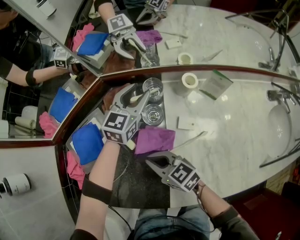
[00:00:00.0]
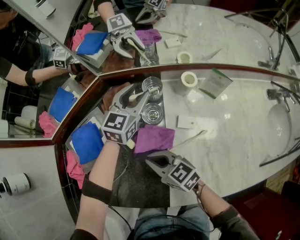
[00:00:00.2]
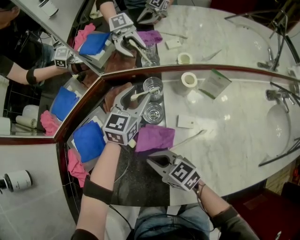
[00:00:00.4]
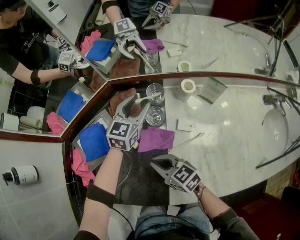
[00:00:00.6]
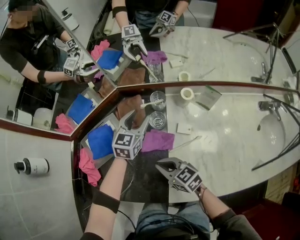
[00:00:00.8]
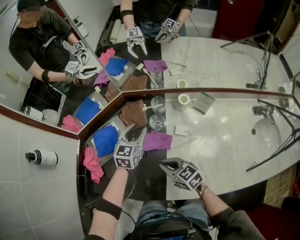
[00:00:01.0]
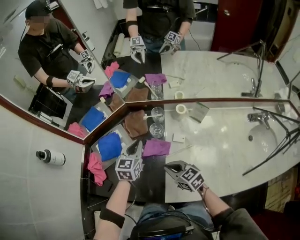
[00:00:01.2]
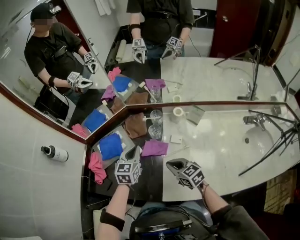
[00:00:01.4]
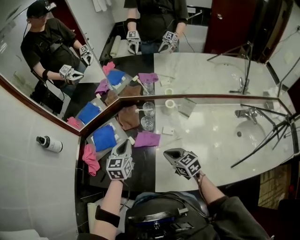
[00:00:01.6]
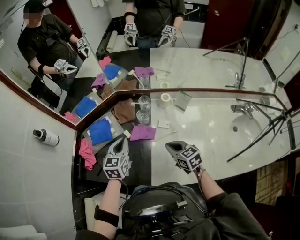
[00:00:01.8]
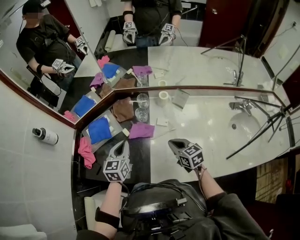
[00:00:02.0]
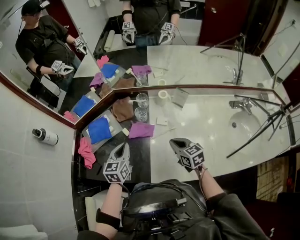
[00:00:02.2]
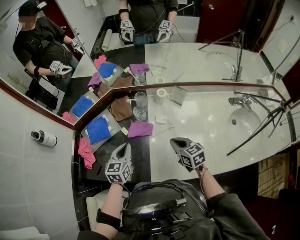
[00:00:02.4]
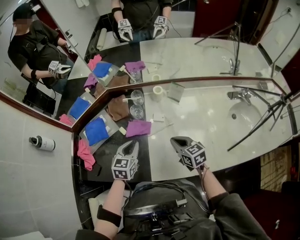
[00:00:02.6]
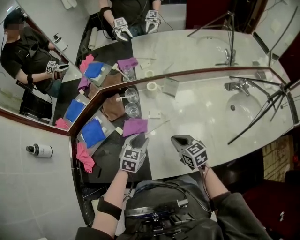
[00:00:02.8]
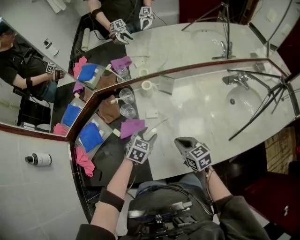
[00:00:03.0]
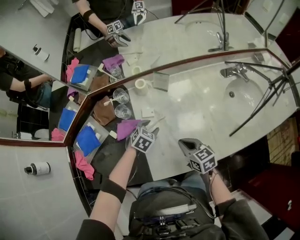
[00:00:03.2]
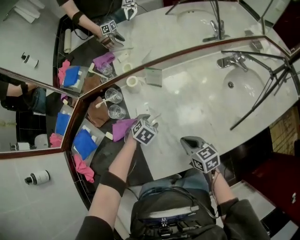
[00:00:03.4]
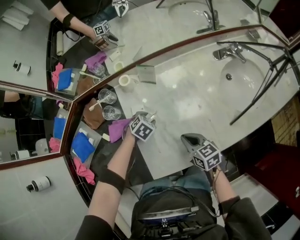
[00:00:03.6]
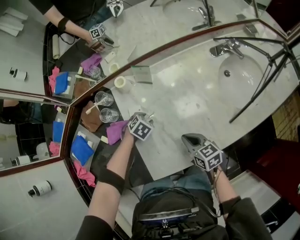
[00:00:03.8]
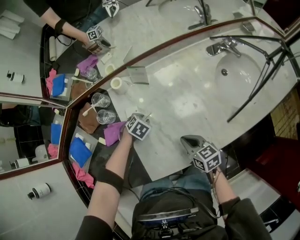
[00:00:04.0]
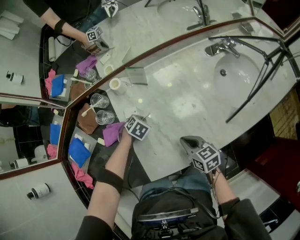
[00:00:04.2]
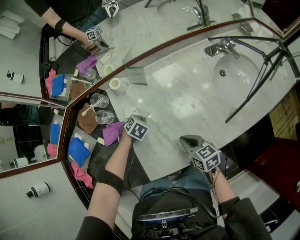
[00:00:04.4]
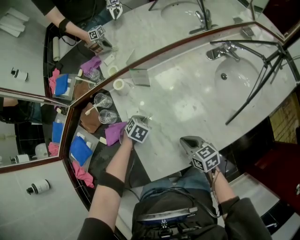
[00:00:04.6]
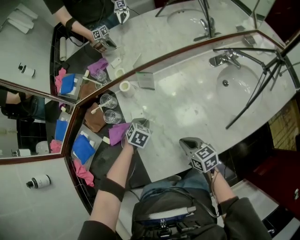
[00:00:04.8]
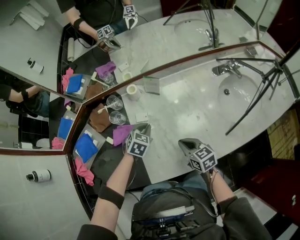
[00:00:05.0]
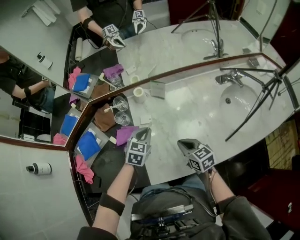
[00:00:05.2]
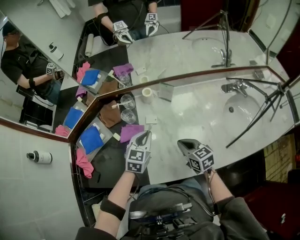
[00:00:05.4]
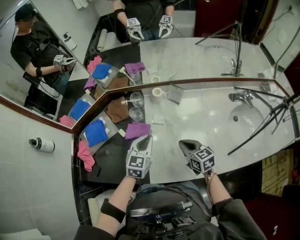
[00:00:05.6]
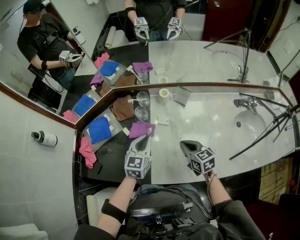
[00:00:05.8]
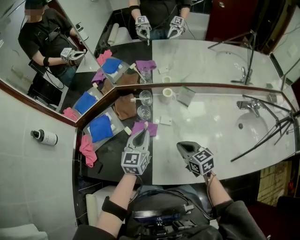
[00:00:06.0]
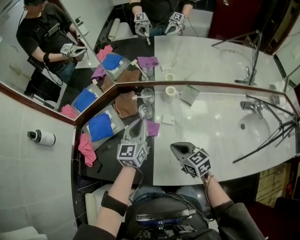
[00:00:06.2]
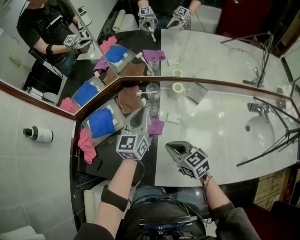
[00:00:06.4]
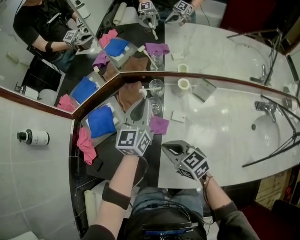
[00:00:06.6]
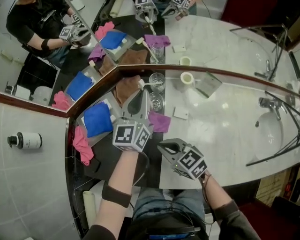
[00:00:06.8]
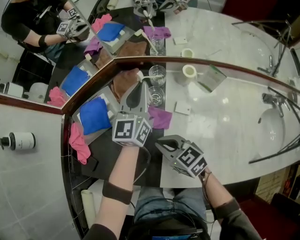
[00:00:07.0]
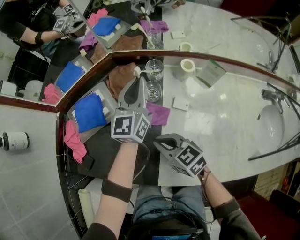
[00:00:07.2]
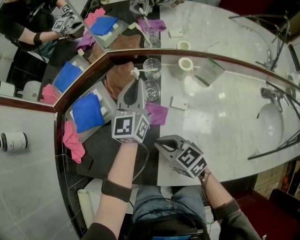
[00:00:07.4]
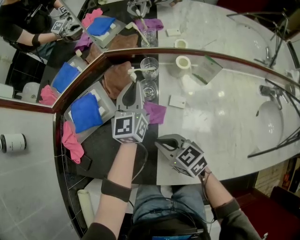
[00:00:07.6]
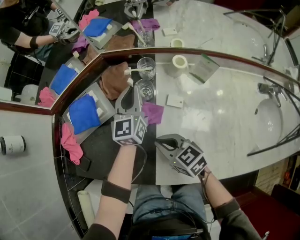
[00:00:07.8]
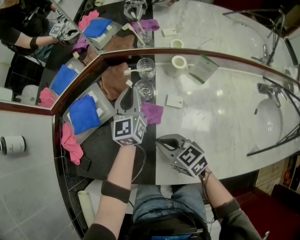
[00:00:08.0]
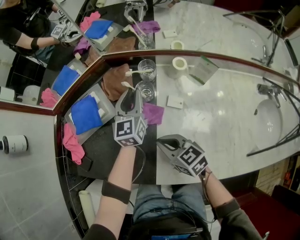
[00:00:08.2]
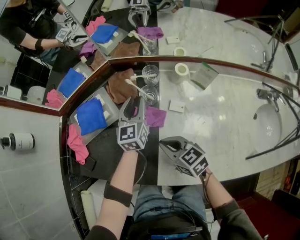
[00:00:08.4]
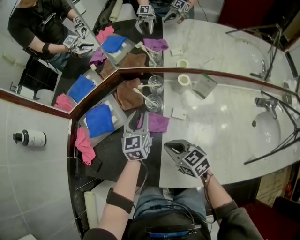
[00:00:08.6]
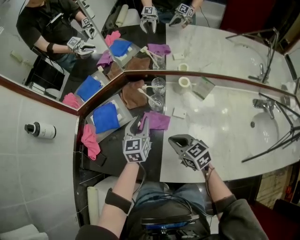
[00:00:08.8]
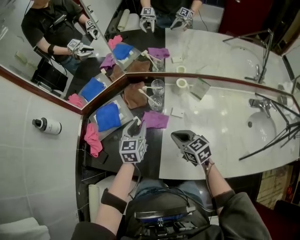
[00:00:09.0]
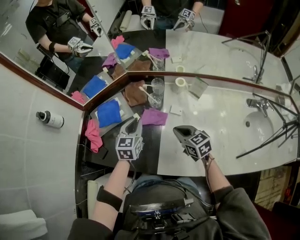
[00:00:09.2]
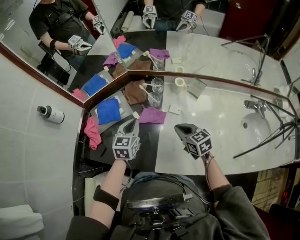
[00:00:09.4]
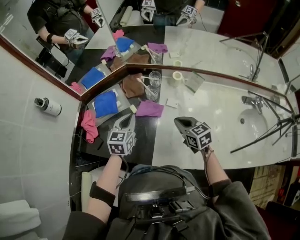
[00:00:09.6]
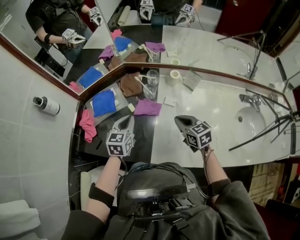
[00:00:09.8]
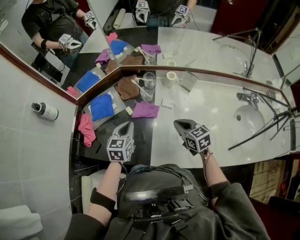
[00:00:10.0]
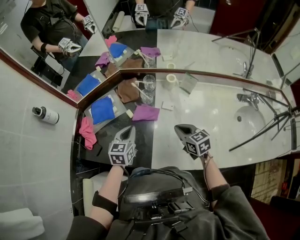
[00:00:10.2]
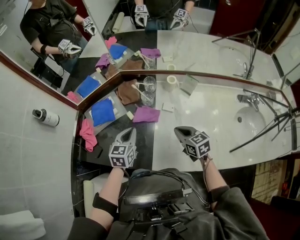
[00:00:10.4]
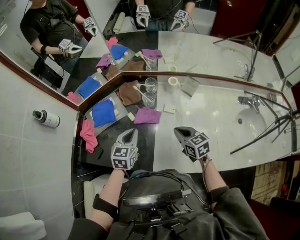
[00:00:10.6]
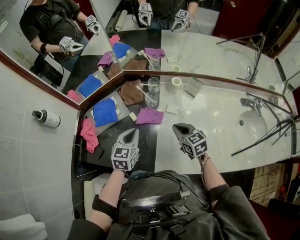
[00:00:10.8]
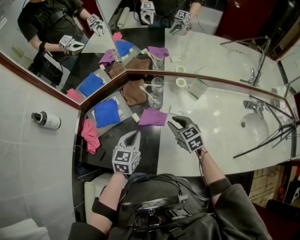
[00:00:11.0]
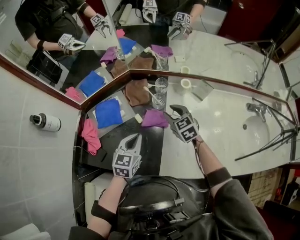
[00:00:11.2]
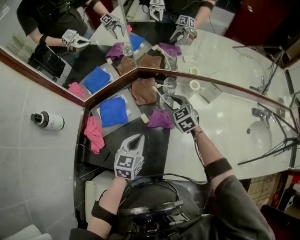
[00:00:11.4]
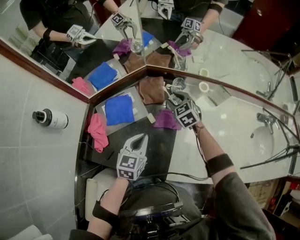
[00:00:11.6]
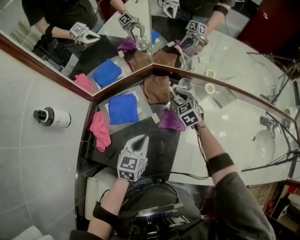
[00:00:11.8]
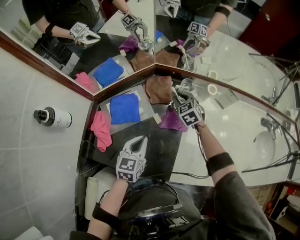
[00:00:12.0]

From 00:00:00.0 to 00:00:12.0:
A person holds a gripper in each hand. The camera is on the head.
From 00:00:00.0 to 00:00:01.6: The left gripper heads backward, to the left and upward, covering roughly 25 cm, rotates approximately 20 degrees, and closes, while the right gripper shifts some 20 cm to the right, upward and backward.
From 00:00:01.6 to 00:00:03.0: The right gripper shifts by roughly 15 cm, and swivels about 20 degrees. Meanwhile the left gripper shifts by some 25 cm, rotates approximately 50 degrees, and opens its fingers.
From 00:00:03.0 to 00:00:04.4: The right gripper changes place by about 10 cm; the left gripper travels downward by roughly 15 cm, swivels approximately 30 degrees, and closes up.
From 00:00:04.4 to 00:00:06.0: The left gripper moves upward, about 25 cm, and tilts its fingers about 60 degrees upward; the right gripper moves roughly 15 cm, and turns by some 30 degrees.
From 00:00:06.0 to 00:00:07.6: The right gripper shifts approximately 20 cm to the left, downward and forward, while the left gripper is displaced forward and downward by roughly 20 cm.
From 00:00:07.6 to 00:00:09.0: The left gripper is displaced backward and to the left by some 15 cm, swivels some 20 degrees, and opens its fingers. The right gripper travels to the right and upward by some 10 cm.
From 00:00:09.0 to 00:00:10.4: The left gripper is displaced backward by about 10 cm, and closes. The right gripper is displaced to the right by about 5 cm.
From 00:00:10.4 to 00:00:12.0: The left gripper is displaced to the left by approximately 10 cm, while the right gripper is displaced forward and to the left by some 30 cm, changes its angle by approximately 30 degrees, and opens.

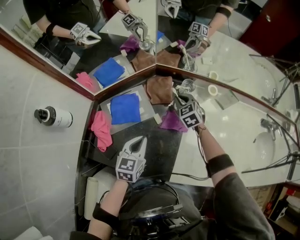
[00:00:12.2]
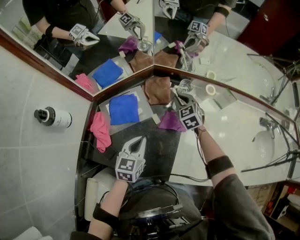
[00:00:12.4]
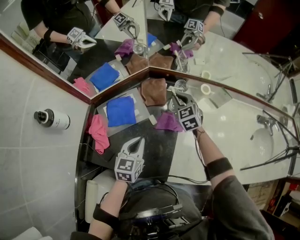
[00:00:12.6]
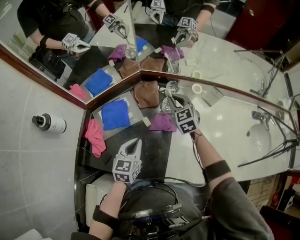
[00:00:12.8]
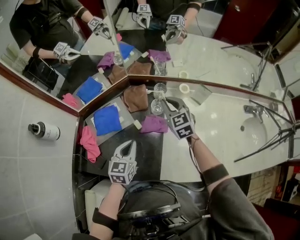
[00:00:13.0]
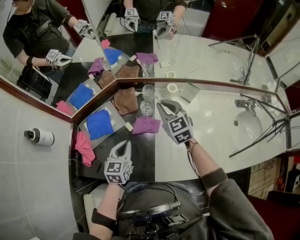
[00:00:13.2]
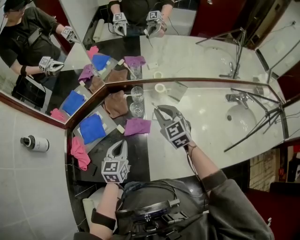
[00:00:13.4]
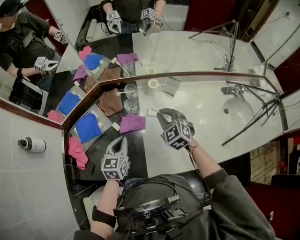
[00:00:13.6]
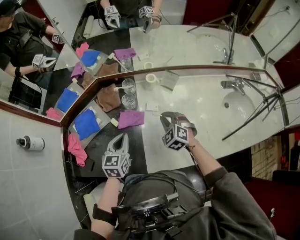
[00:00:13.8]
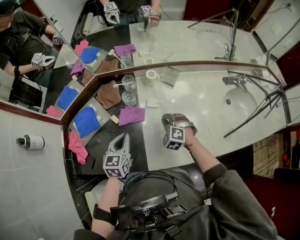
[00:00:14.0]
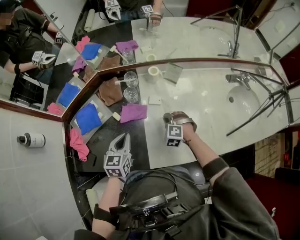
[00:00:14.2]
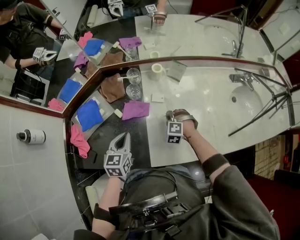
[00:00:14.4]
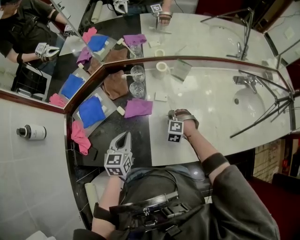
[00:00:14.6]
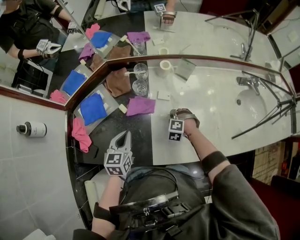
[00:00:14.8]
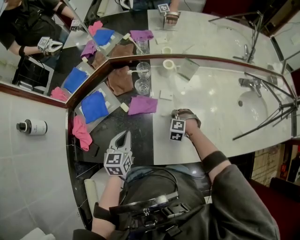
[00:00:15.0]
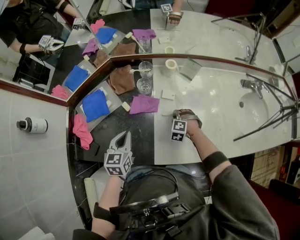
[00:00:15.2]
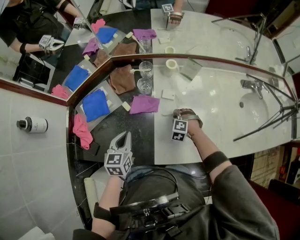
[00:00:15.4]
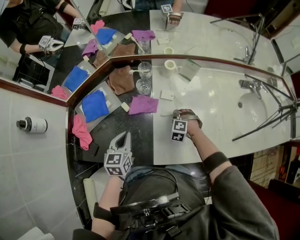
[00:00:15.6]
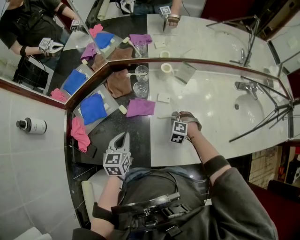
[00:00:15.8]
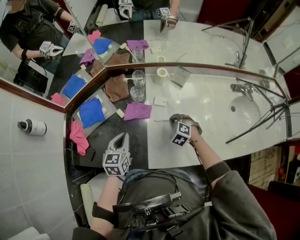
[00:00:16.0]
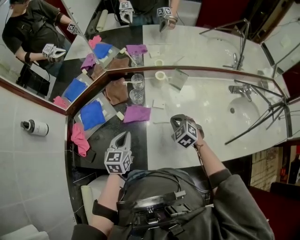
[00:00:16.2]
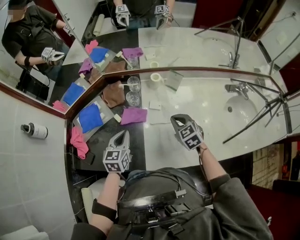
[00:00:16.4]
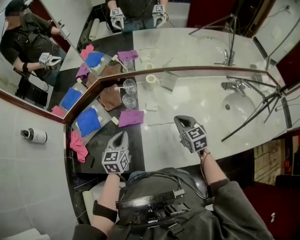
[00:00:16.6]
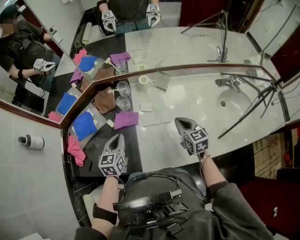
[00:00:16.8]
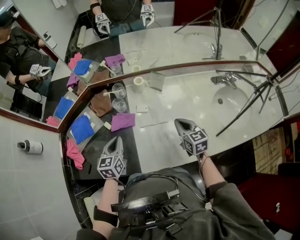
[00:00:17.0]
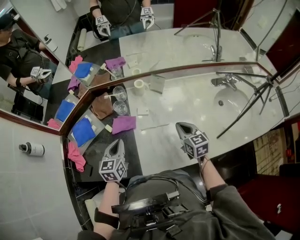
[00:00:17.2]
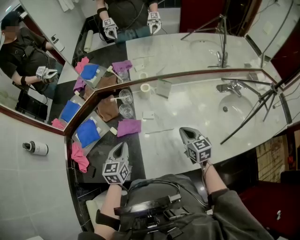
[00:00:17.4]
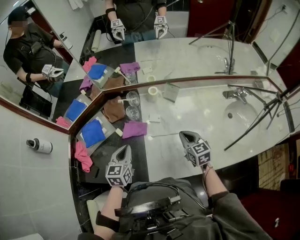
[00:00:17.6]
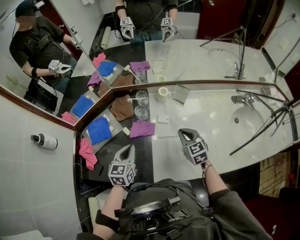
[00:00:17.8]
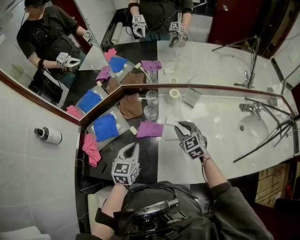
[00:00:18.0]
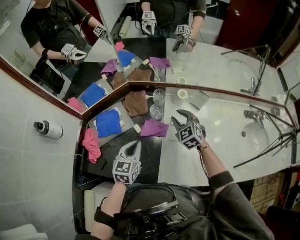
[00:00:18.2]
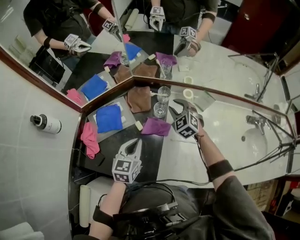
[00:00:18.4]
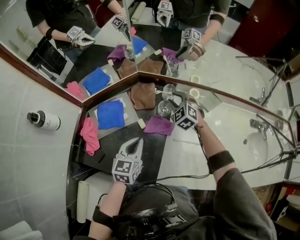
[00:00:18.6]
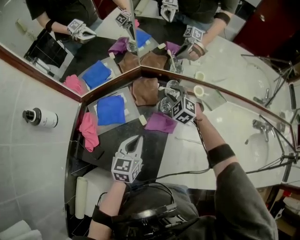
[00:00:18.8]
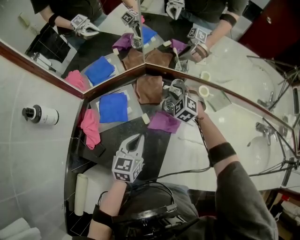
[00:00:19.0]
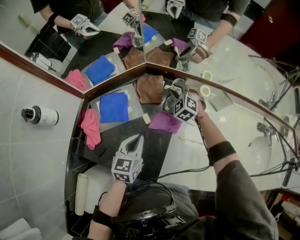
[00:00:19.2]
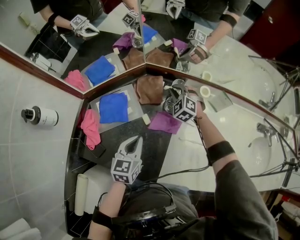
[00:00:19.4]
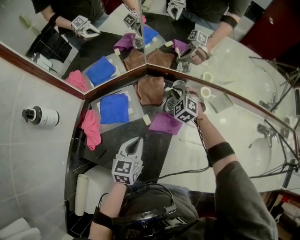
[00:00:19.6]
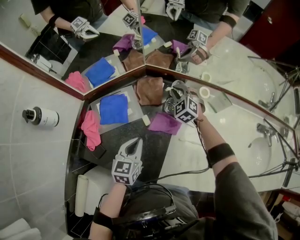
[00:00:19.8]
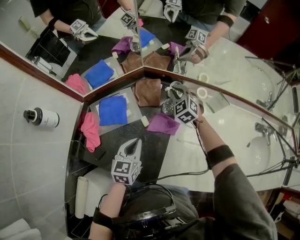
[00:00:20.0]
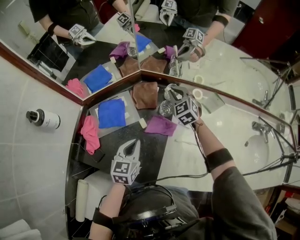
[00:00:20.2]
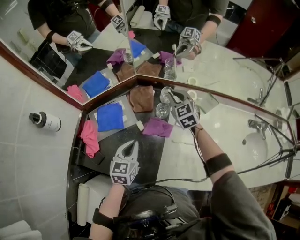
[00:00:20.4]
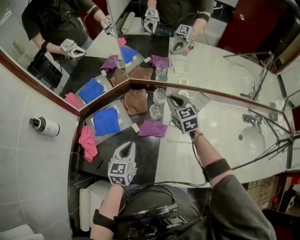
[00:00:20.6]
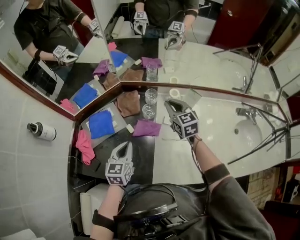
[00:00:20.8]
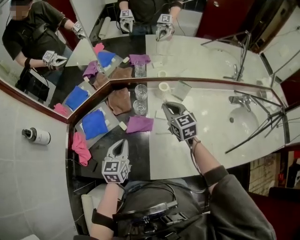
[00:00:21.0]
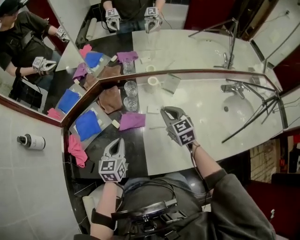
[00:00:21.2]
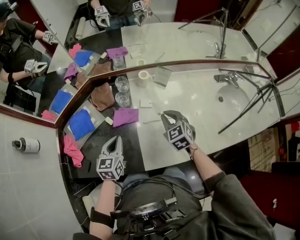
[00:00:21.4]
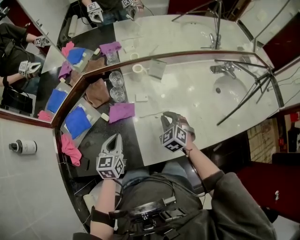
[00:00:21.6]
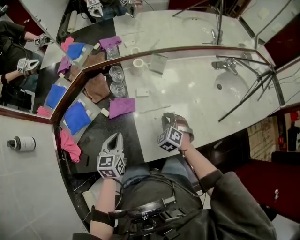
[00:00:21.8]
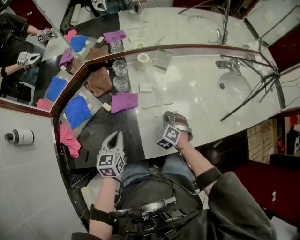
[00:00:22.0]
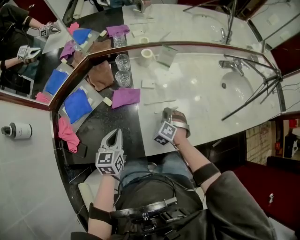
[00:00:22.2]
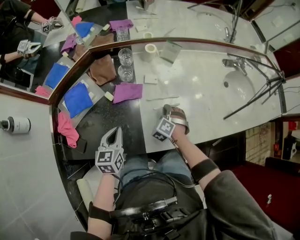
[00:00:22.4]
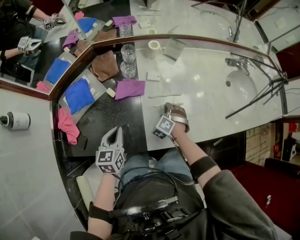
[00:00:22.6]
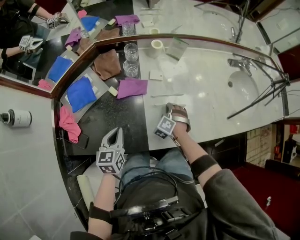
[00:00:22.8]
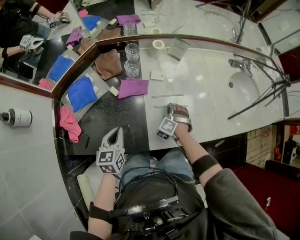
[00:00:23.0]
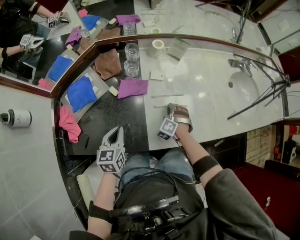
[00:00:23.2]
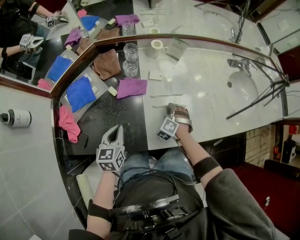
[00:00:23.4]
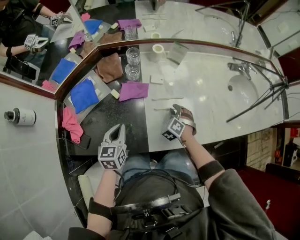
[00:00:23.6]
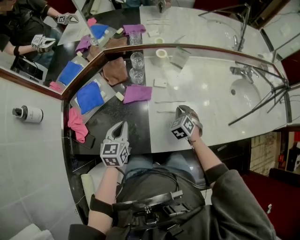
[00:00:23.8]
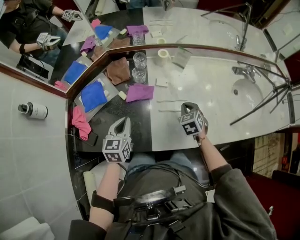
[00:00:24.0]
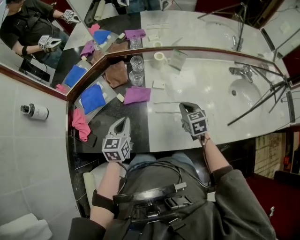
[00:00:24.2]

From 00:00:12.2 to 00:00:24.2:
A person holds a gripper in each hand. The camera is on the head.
From 00:00:12.2 to 00:00:13.8: The left gripper heads to the right, covering some 15 cm. The right gripper shifts approximately 25 cm to the right and backward.
From 00:00:13.8 to 00:00:15.2: The left gripper shifts by some 5 cm, while the right gripper shifts about 15 cm downward, and changes its angle by some 30 degrees.
From 00:00:15.2 to 00:00:16.6: The right gripper heads upward, covering approximately 20 cm, and twists some 60 degrees clockwise, seen from behind. The left gripper heads to the right, covering about 5 cm.
From 00:00:16.6 to 00:00:18.2: The left gripper is displaced to the left by about 5 cm. Meanwhile the right gripper travels to the left and forward by some 20 cm, rotates roughly 30 degrees, and opens.
From 00:00:18.2 to 00:00:19.8: The right gripper travels forward, to the left and downward by about 20 cm, and closes; the left gripper shifts approximately 5 cm downward.
From 00:00:19.8 to 00:00:21.2: The right gripper travels backward, to the right and upward by some 30 cm, and rolls clockwise, seen from behind, by some 40 degrees, while the left gripper goes approximately 5 cm to the right.
From 00:00:21.2 to 00:00:22.6: The left gripper moves some 10 cm; the right gripper travels downward by approximately 20 cm, and rotates roughly 60 degrees.
From 00:00:22.6 to 00:00:24.2: The left gripper is displaced upward by about 5 cm; the right gripper moves upward, roughly 10 cm, and twists some 50 degrees clockwise, seen from behind.
